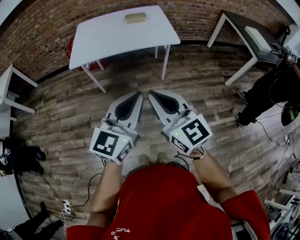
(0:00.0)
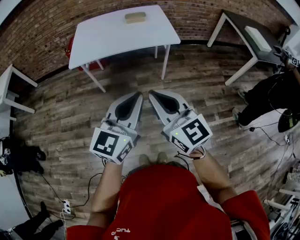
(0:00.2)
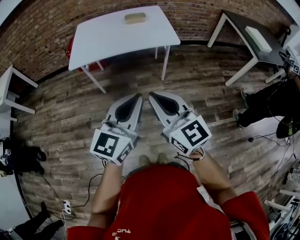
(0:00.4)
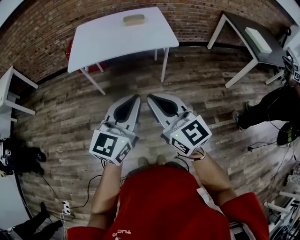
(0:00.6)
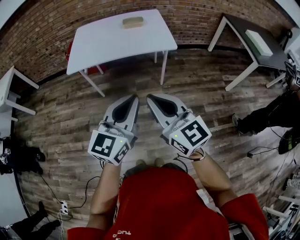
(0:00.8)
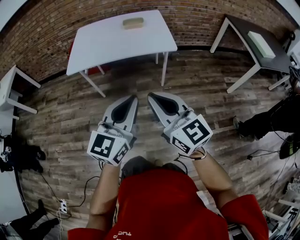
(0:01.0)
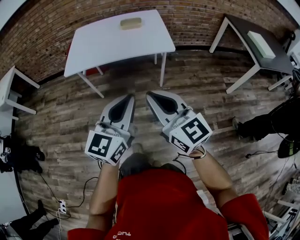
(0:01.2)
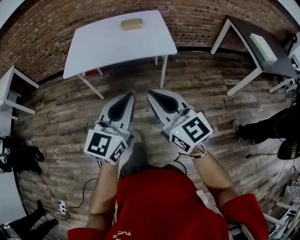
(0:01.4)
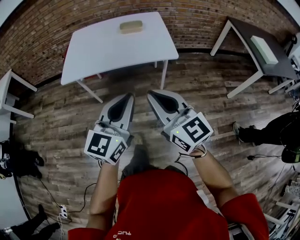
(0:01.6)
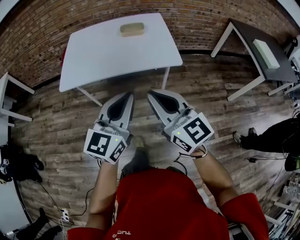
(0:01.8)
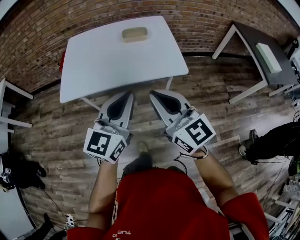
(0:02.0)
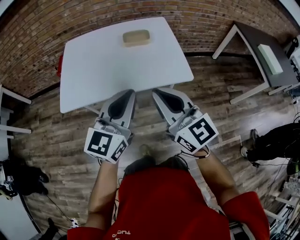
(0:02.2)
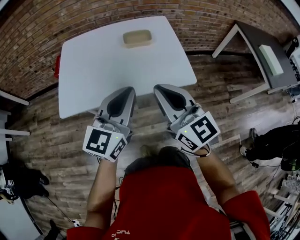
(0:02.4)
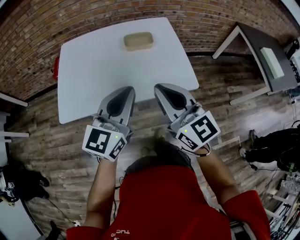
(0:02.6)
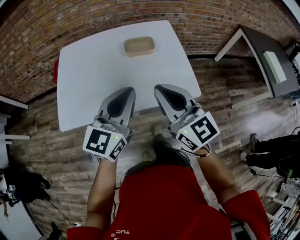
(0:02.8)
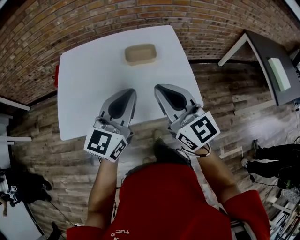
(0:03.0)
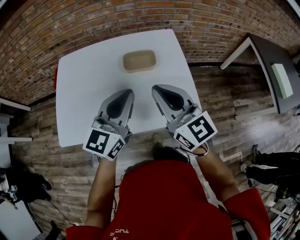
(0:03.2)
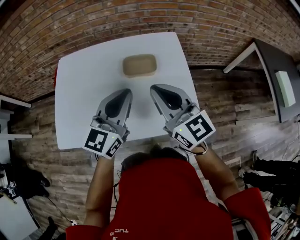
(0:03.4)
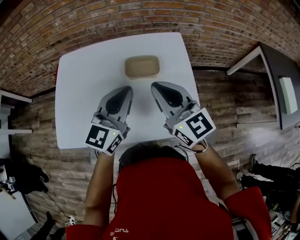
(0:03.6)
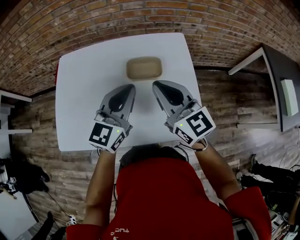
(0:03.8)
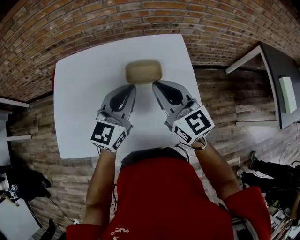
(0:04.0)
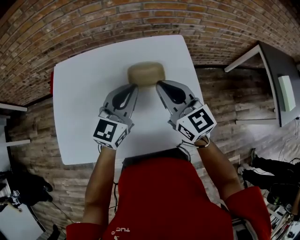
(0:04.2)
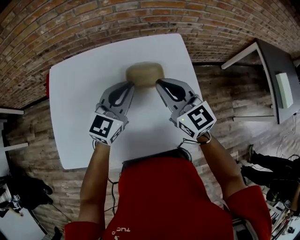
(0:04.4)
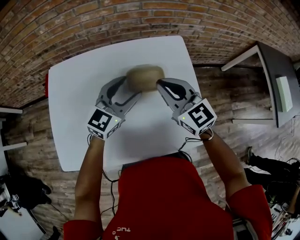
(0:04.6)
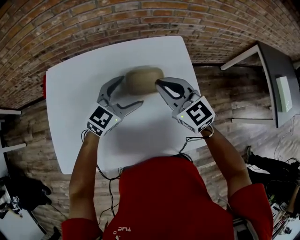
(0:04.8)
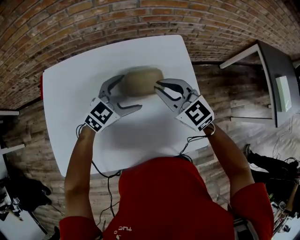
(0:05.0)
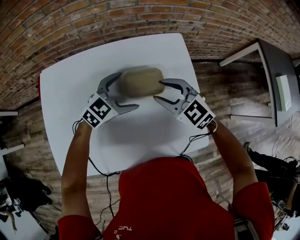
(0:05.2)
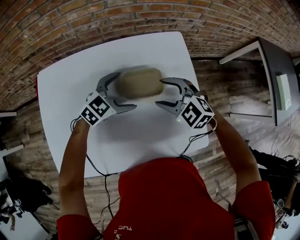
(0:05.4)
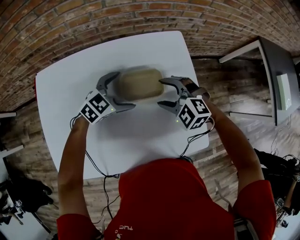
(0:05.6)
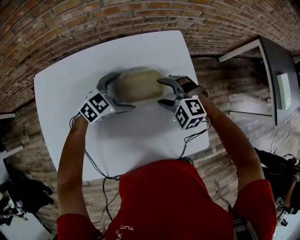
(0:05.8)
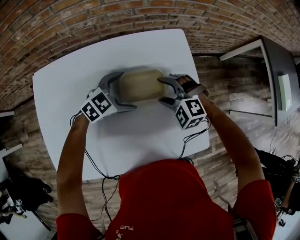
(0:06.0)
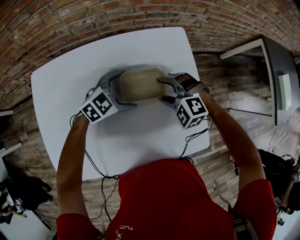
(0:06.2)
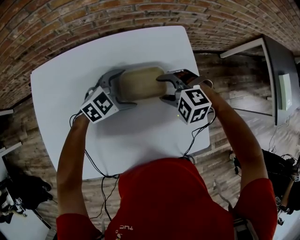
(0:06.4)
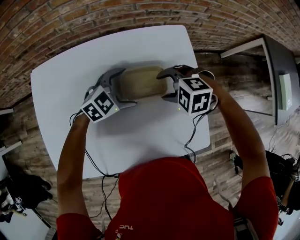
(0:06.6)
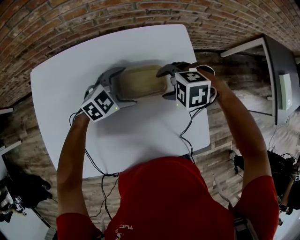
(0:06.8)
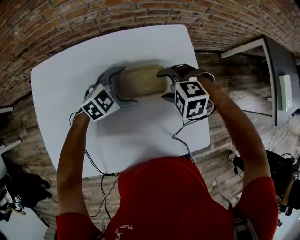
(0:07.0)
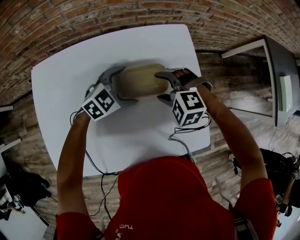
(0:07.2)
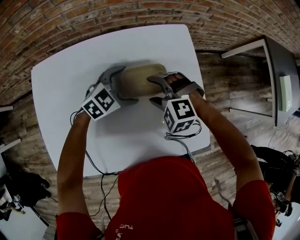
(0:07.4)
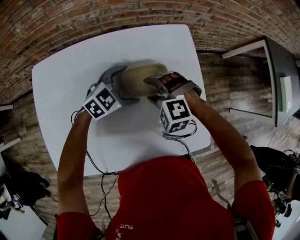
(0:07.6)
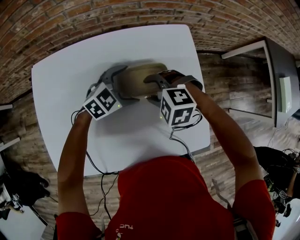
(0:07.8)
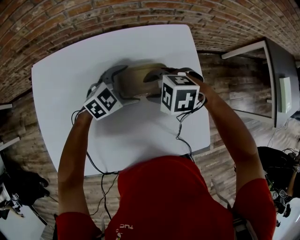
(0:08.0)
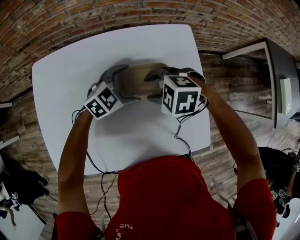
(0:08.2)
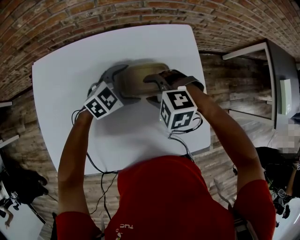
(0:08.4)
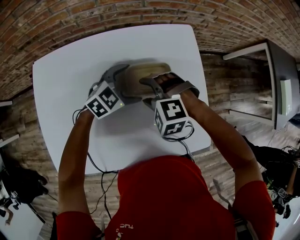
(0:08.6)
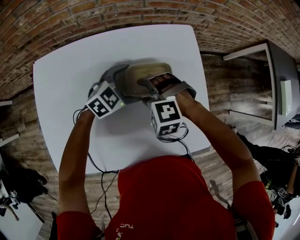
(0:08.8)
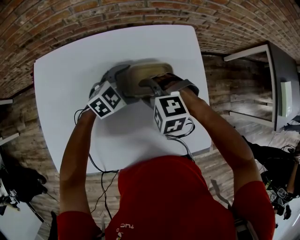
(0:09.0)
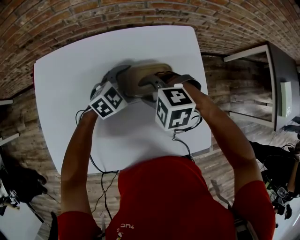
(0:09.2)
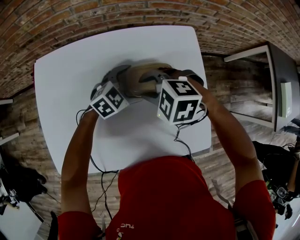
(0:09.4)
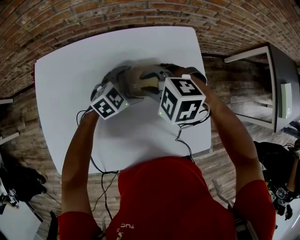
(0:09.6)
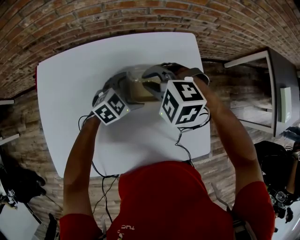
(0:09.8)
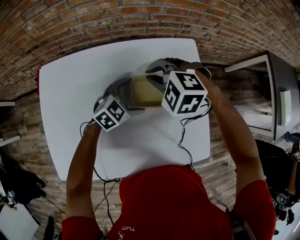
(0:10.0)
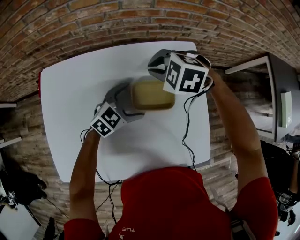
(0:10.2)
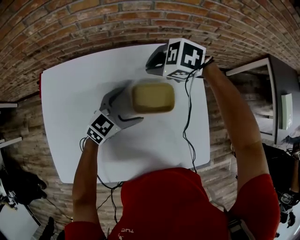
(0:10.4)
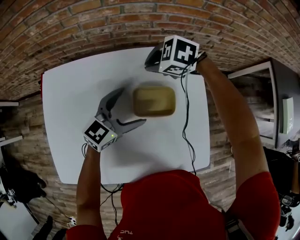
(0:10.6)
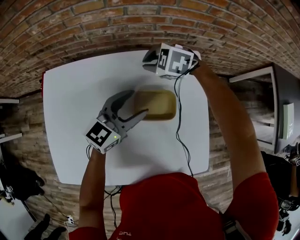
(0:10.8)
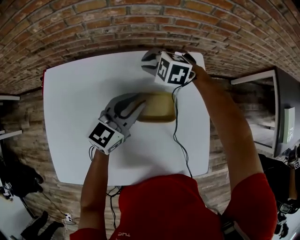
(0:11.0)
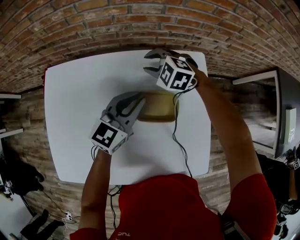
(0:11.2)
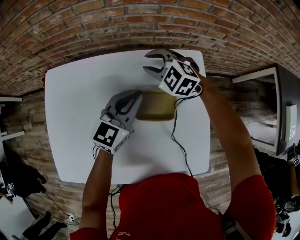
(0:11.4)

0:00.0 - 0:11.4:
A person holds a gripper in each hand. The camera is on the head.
0:00.0 - 0:01.4: Both grippers move forward and to the right, approximately 10 cm.
0:01.4 - 0:02.8: Both grippers are carried forward, some 40 cm.
0:02.8 - 0:04.2: The two grippers go approximately 30 cm forward.
0:04.2 - 0:05.6: The two grippers go roughly 20 cm downward and forward. The left gripper turns by some 40 degrees, and opens; the right gripper tips its fingers downward by roughly 40 degrees, and opens its fingers.
0:07.2 - 0:08.6: The right gripper shifts by some 5 cm.
0:08.6 - 0:10.0: The right gripper shifts by approximately 10 cm, and closes.
0:10.0 - 0:11.4: The left gripper heads upward, covering roughly 10 cm, rotates roughly 40 degrees, and closes. The right gripper moves roughly 10 cm.

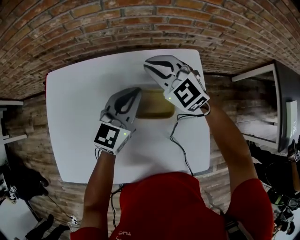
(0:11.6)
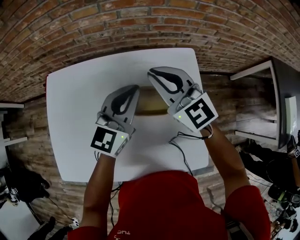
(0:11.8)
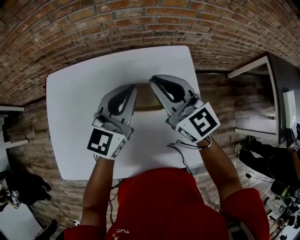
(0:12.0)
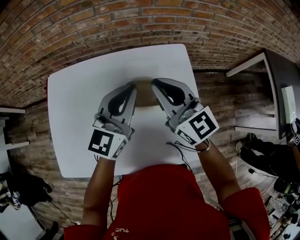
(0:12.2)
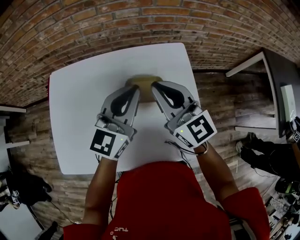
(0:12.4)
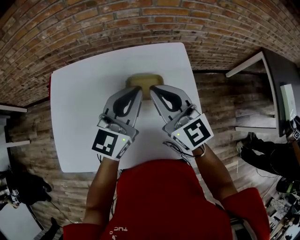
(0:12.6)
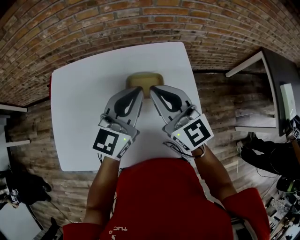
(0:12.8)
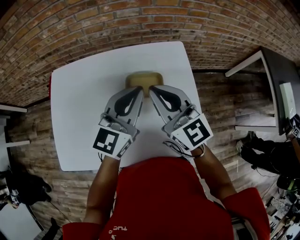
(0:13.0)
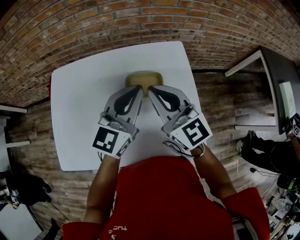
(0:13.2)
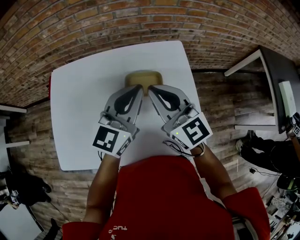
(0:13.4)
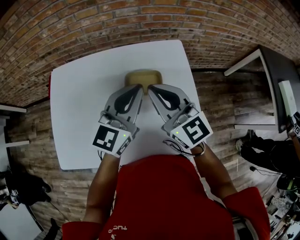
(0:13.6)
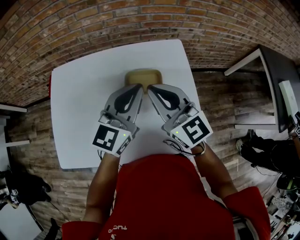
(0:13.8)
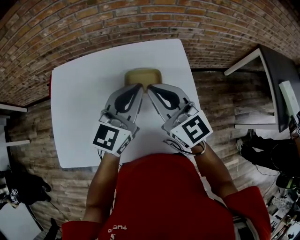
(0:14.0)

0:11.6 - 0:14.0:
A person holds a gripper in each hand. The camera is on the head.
0:11.6 - 0:12.8: The grippers both shift backward and upward by some 20 cm. The right gripper rotates some 40 degrees.
0:12.8 - 0:14.0: The grippers make only small movements.

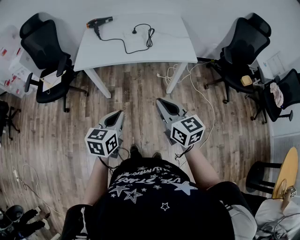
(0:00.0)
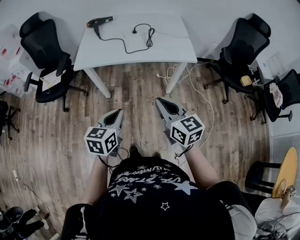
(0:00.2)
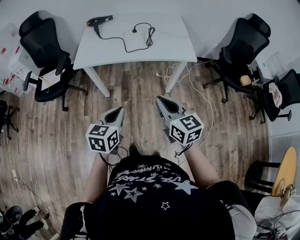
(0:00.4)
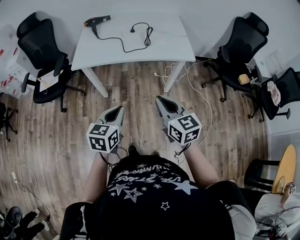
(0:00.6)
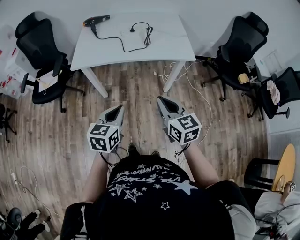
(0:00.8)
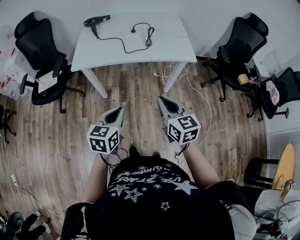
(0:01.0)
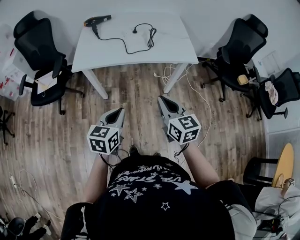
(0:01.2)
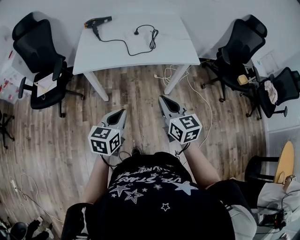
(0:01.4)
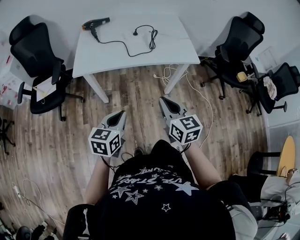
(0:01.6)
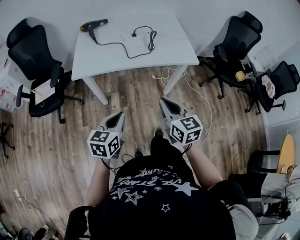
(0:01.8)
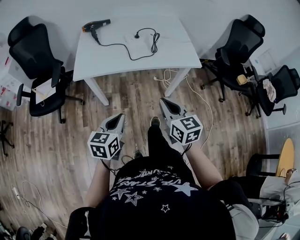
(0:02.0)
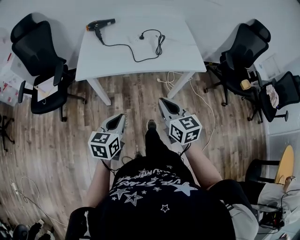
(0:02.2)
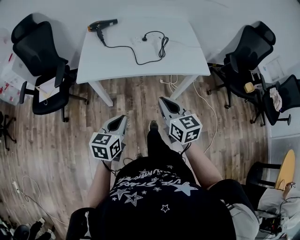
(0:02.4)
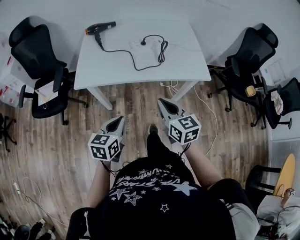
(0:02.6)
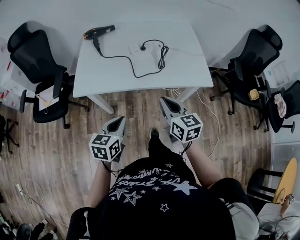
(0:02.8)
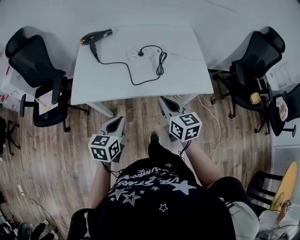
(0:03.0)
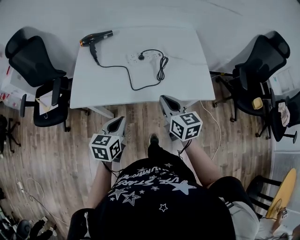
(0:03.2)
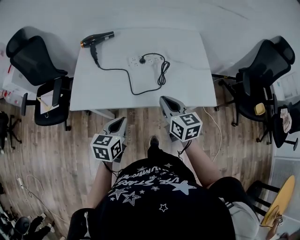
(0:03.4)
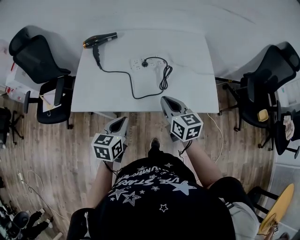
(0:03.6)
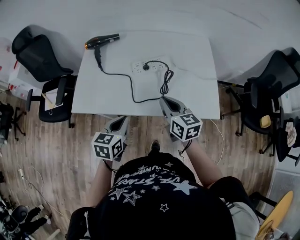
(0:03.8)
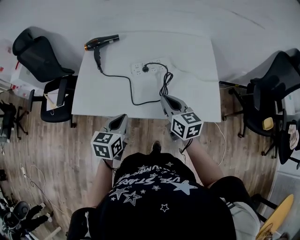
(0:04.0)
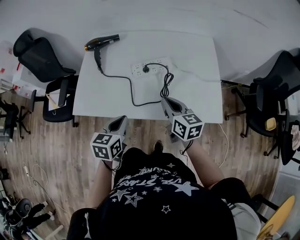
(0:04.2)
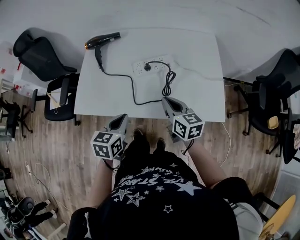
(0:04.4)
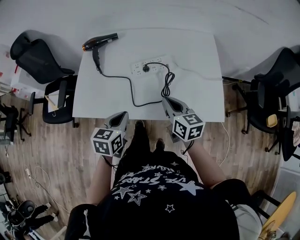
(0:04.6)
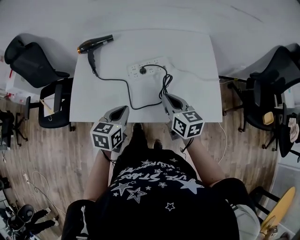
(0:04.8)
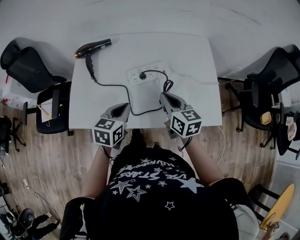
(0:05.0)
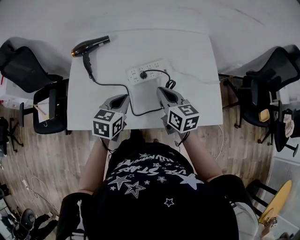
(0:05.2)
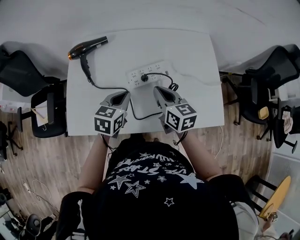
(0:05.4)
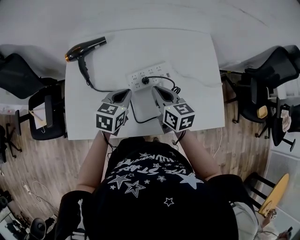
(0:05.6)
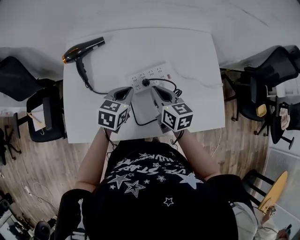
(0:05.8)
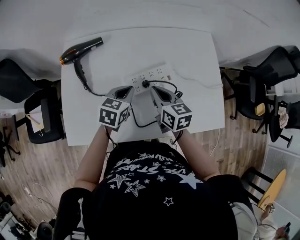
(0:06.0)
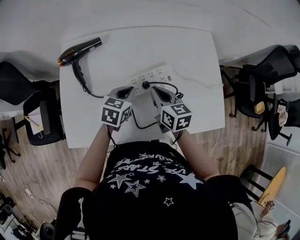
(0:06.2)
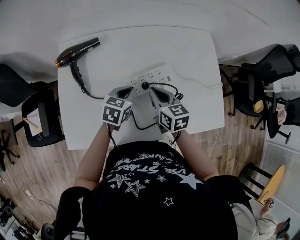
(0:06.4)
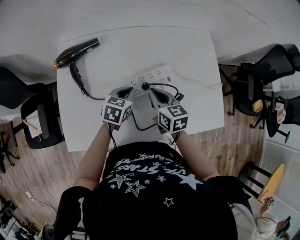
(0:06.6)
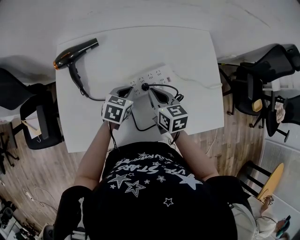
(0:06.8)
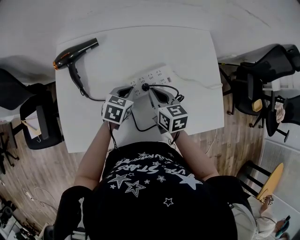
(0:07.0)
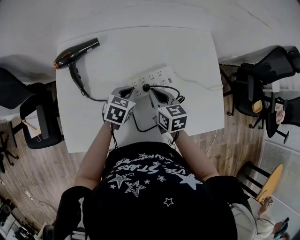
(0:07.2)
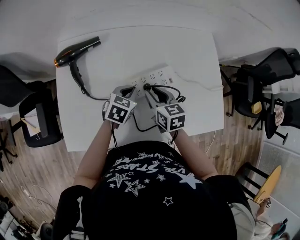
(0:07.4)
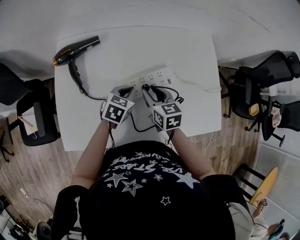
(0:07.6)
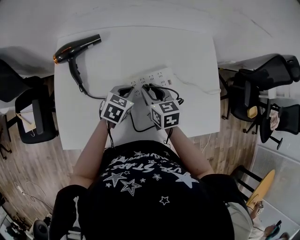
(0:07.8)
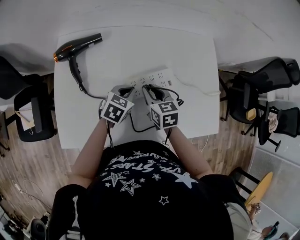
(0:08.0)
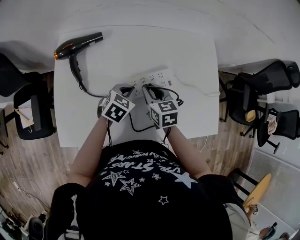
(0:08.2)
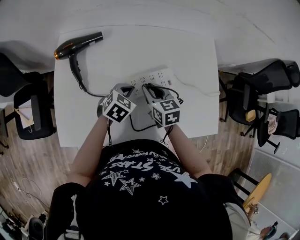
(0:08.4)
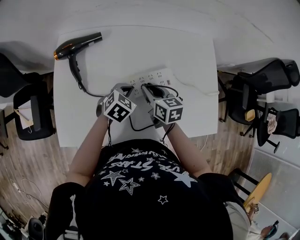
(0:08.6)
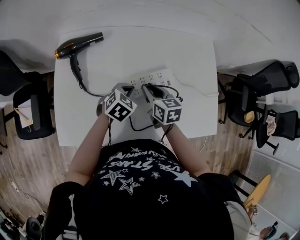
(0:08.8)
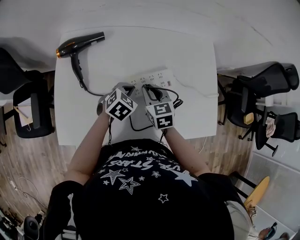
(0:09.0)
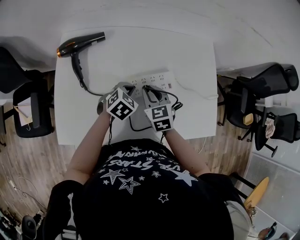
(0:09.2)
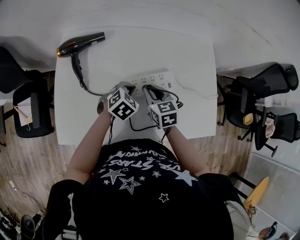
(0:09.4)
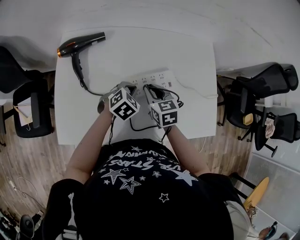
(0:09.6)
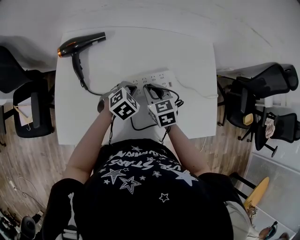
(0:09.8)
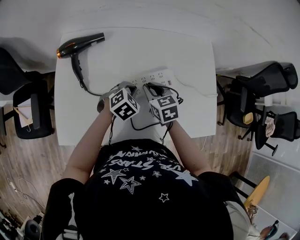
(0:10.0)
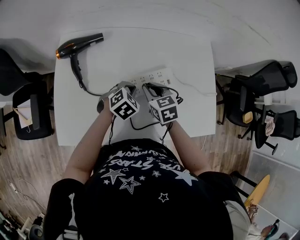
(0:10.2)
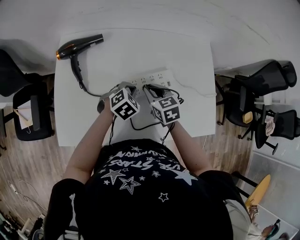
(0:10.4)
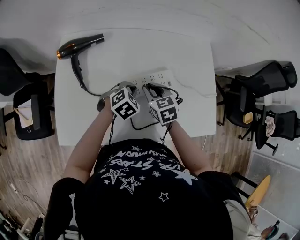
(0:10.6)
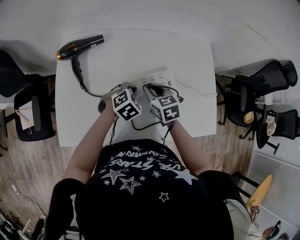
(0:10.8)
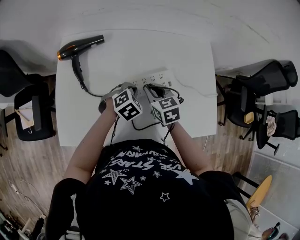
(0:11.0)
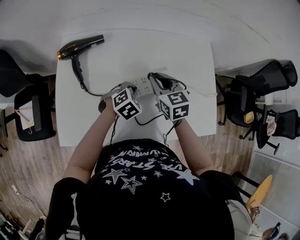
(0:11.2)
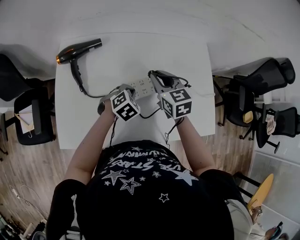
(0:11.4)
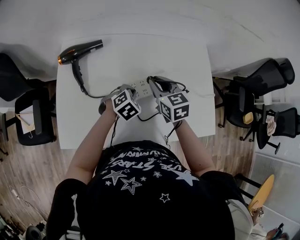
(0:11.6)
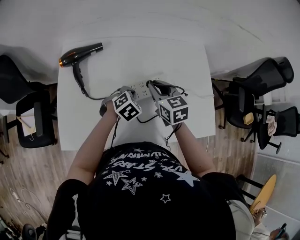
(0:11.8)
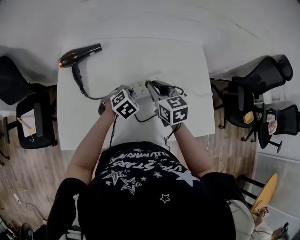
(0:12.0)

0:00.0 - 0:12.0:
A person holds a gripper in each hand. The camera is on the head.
0:00.0 - 0:01.6: The two grippers go roughly 10 cm to the left and forward.
0:01.6 - 0:03.0: Both grippers move forward, approximately 20 cm.
0:03.0 - 0:04.4: Both grippers move forward, approximately 15 cm.
0:04.4 - 0:06.0: The right gripper travels forward and to the left by approximately 20 cm, while the left gripper is displaced forward by about 25 cm, and swivels some 20 degrees.
0:06.0 - 0:07.6: The right gripper shifts by roughly 5 cm, and opens its fingers. The left gripper travels downward by approximately 5 cm.
0:07.6 - 0:09.0: The grippers move only a little.
0:09.0 - 0:10.4: The grippers move only a little.
0:10.4 - 0:12.0: The right gripper goes roughly 10 cm upward.
